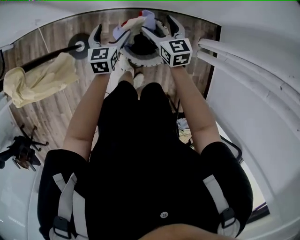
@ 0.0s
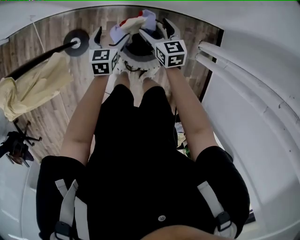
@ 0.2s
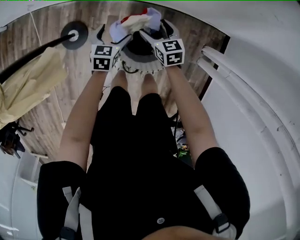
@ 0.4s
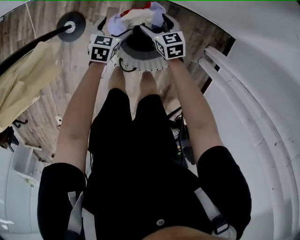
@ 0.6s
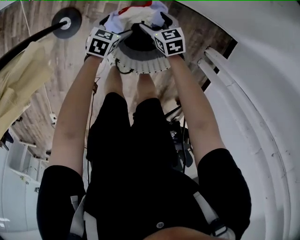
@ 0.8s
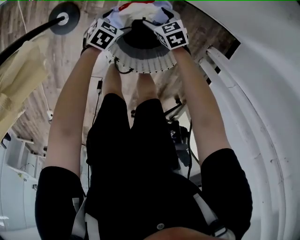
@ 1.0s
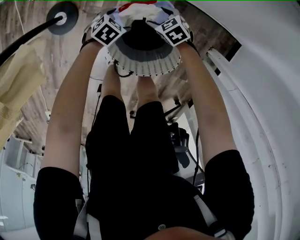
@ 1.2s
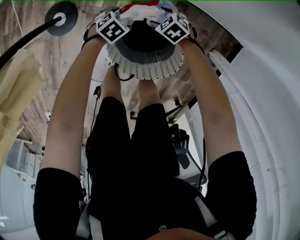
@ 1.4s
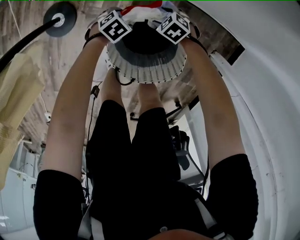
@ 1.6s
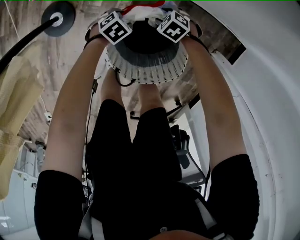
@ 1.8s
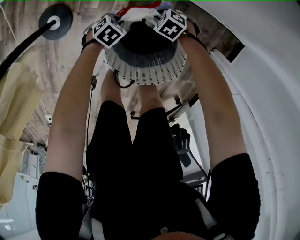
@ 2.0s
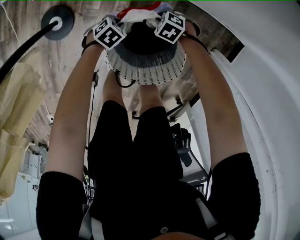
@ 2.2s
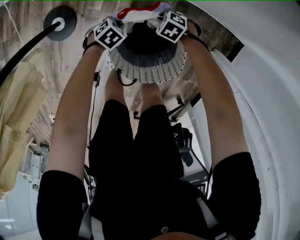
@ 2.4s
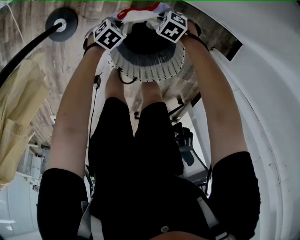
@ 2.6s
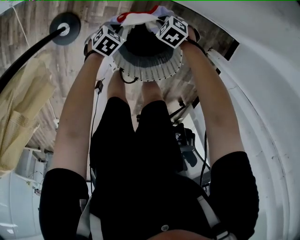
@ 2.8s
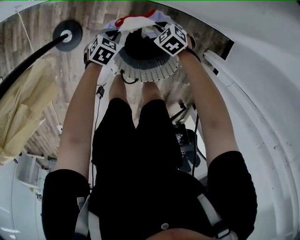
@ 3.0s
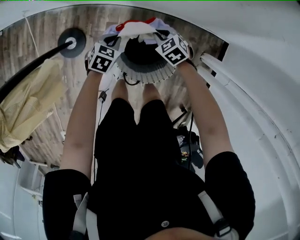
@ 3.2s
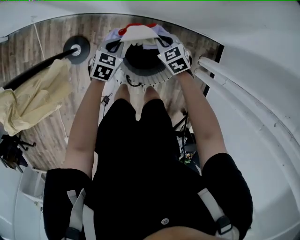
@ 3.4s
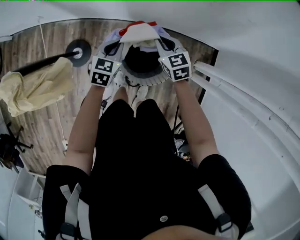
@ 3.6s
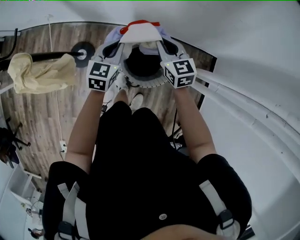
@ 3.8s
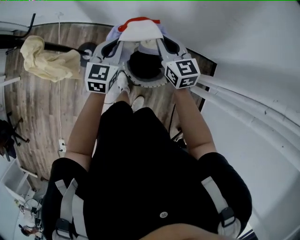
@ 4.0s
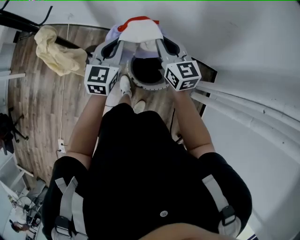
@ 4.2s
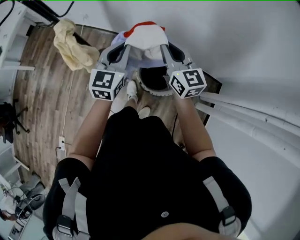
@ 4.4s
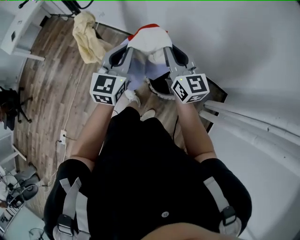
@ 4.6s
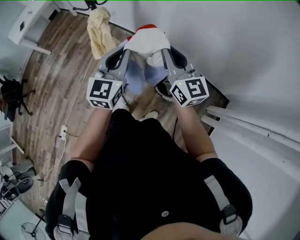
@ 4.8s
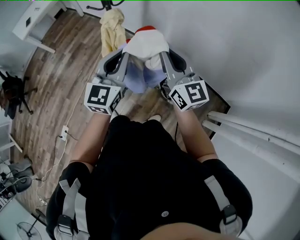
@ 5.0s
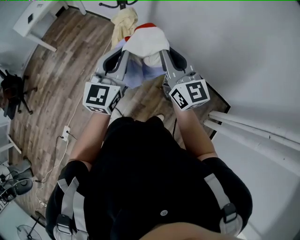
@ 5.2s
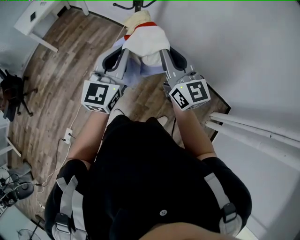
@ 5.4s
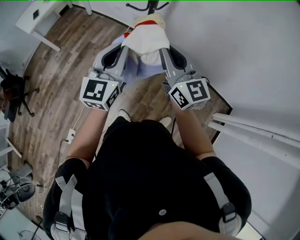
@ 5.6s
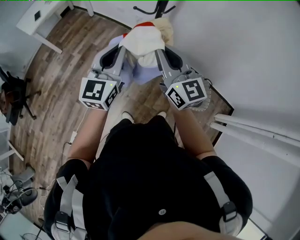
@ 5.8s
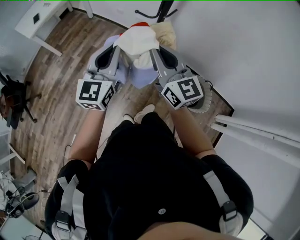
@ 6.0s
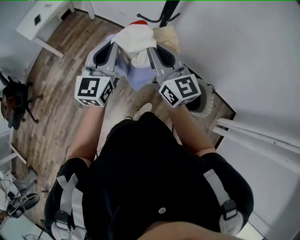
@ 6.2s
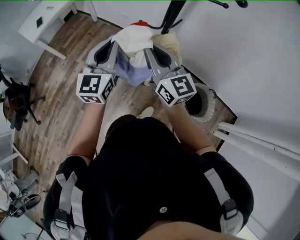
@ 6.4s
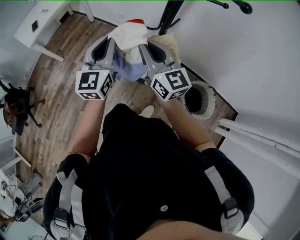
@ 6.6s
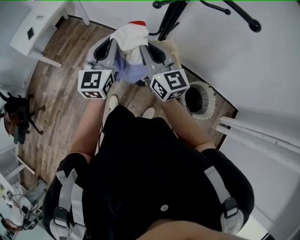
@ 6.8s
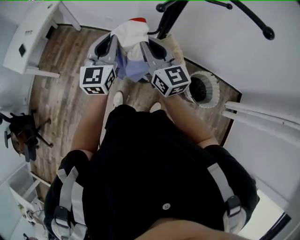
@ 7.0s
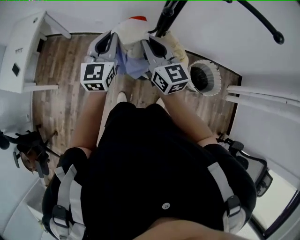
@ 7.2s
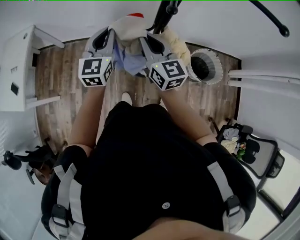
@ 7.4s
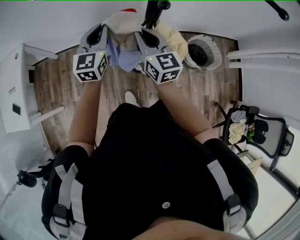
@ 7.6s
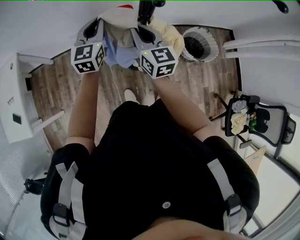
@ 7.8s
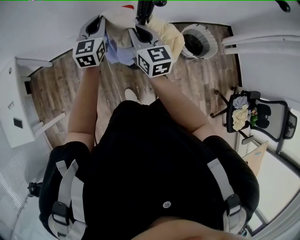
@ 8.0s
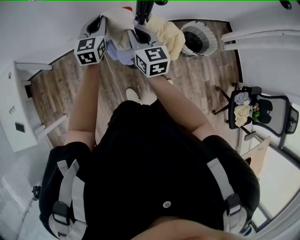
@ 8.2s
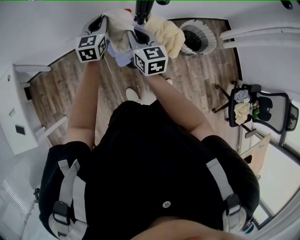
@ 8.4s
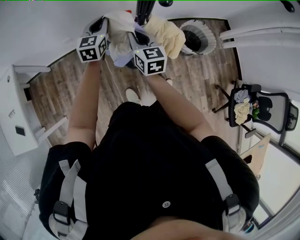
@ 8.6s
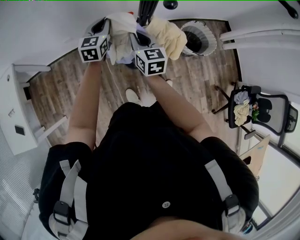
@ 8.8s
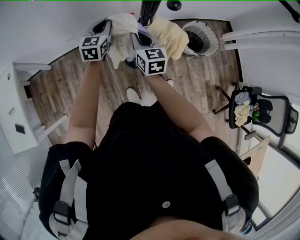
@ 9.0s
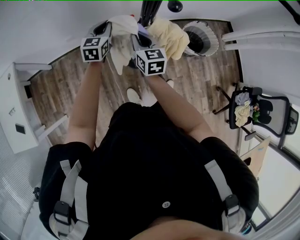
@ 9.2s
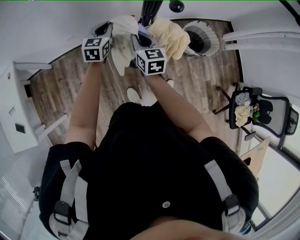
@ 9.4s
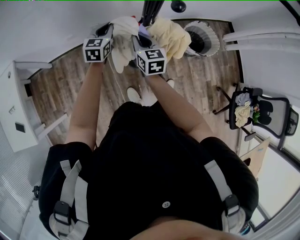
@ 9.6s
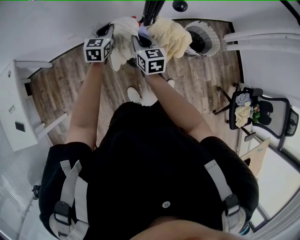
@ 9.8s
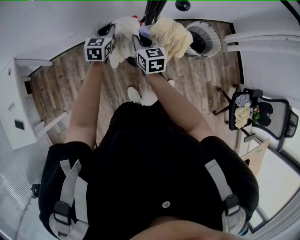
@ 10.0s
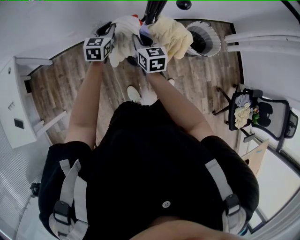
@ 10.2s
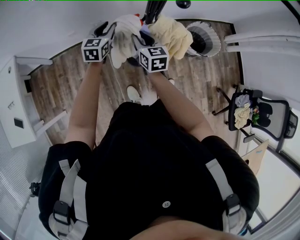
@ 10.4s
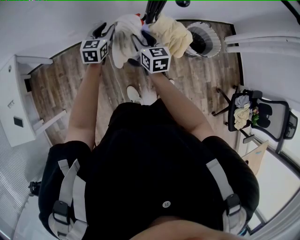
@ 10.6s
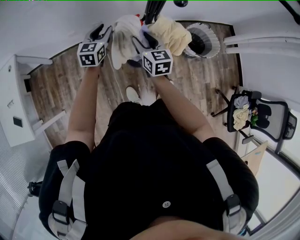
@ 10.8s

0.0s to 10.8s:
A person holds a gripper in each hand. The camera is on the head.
0.0s to 1.6s: Both grippers move downward, approximately 50 cm. The left gripper angles its fingers downward, by approximately 30 degrees; the right gripper tips its fingers downward by some 40 degrees.
1.6s to 3.0s: The two grippers go about 15 cm upward. The right gripper closes, while the left gripper closes up.
3.0s to 4.6s: The grippers both shift upward by some 60 cm. The left gripper tips its fingers upward by about 50 degrees, while the right gripper tips its fingers upward by approximately 60 degrees.
4.6s to 6.2s: The two grippers travel together, to the left, roughly 50 cm.
6.2s to 7.8s: The left gripper shifts by some 35 cm, and turns by roughly 40 degrees. Meanwhile the right gripper changes place by about 25 cm, and swivels roughly 50 degrees.
7.8s to 9.2s: The left gripper heads downward and forward, covering roughly 15 cm. The right gripper goes roughly 10 cm downward.
9.2s to 10.8s: The grippers move only a little.

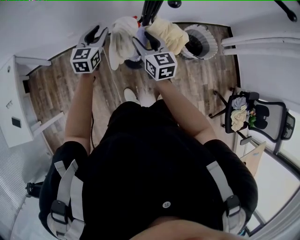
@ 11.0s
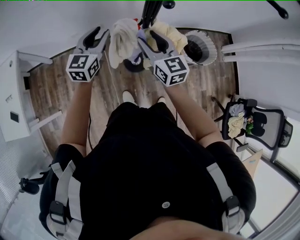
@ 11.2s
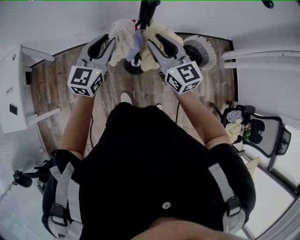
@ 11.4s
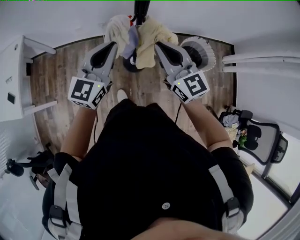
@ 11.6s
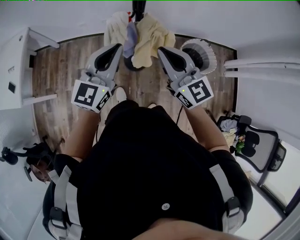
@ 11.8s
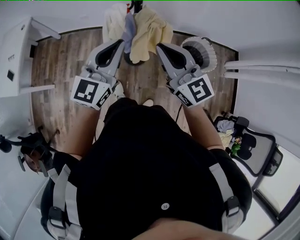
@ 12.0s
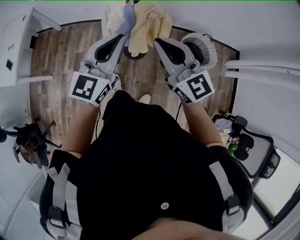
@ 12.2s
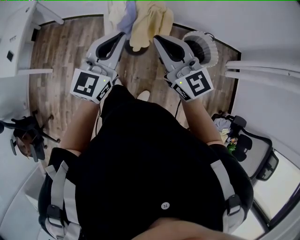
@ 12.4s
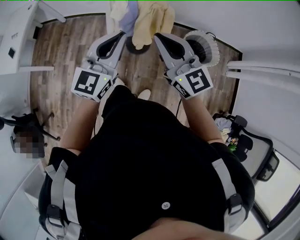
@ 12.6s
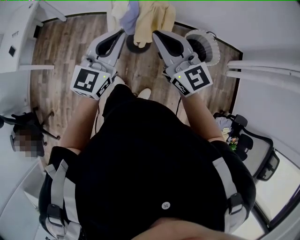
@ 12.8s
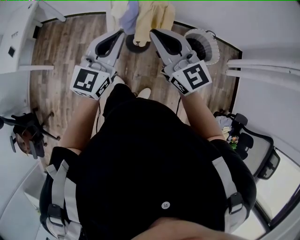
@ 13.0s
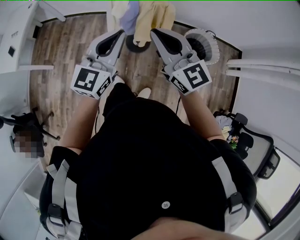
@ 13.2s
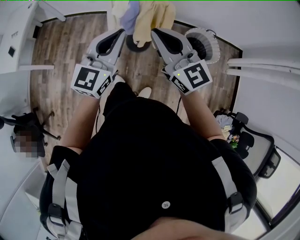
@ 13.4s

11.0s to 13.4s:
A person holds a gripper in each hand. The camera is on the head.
11.0s to 12.2s: The two grippers go some 35 cm backward, upward and to the right. The right gripper changes its angle by roughly 40 degrees, and closes up.
12.2s to 13.4s: The left gripper travels backward by some 5 cm.

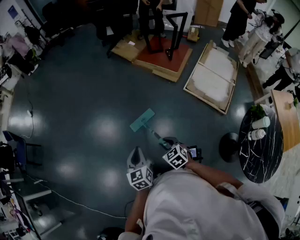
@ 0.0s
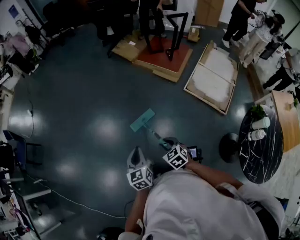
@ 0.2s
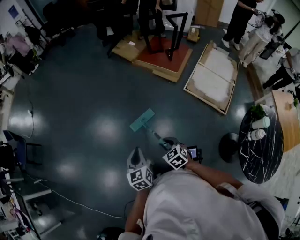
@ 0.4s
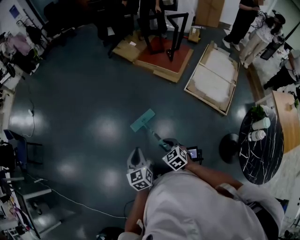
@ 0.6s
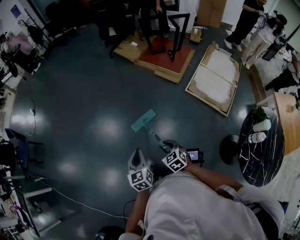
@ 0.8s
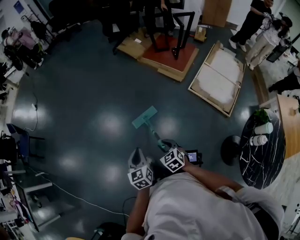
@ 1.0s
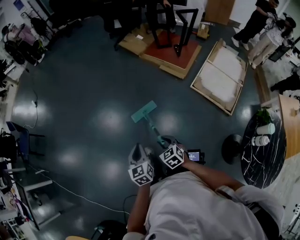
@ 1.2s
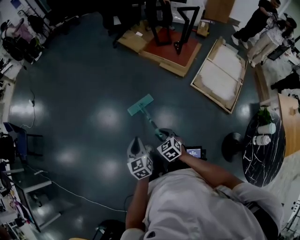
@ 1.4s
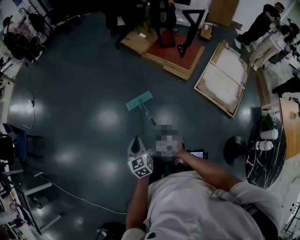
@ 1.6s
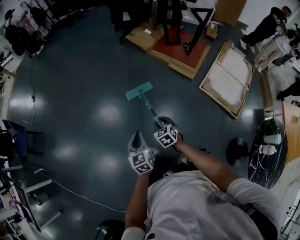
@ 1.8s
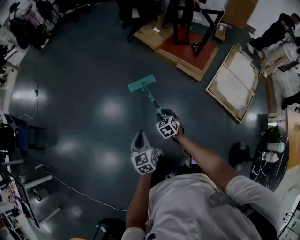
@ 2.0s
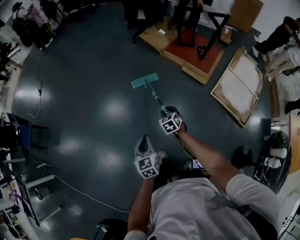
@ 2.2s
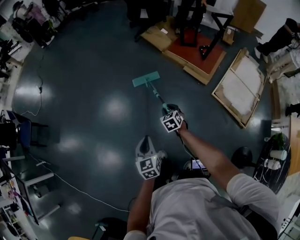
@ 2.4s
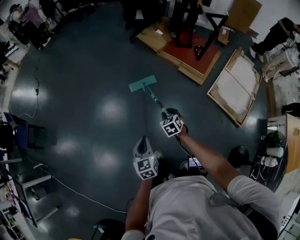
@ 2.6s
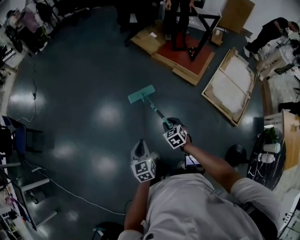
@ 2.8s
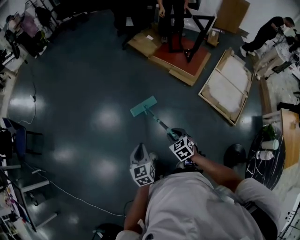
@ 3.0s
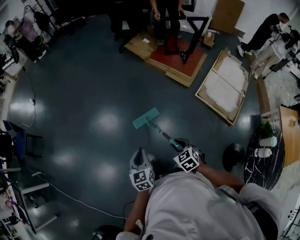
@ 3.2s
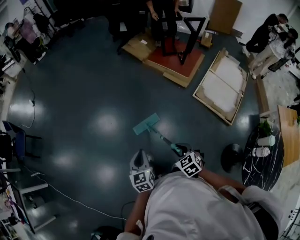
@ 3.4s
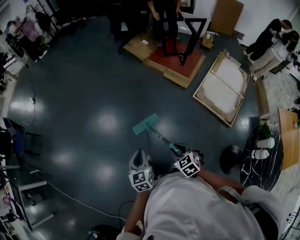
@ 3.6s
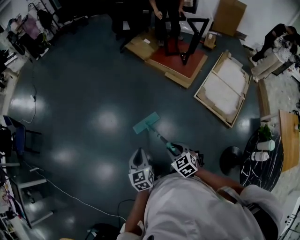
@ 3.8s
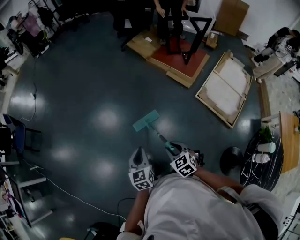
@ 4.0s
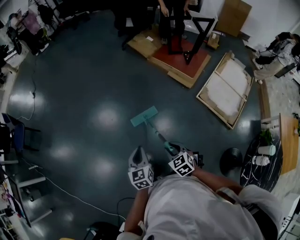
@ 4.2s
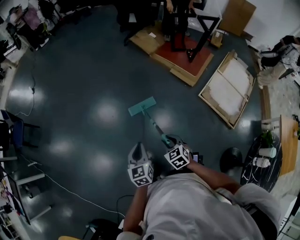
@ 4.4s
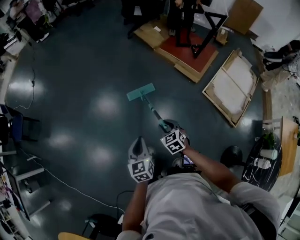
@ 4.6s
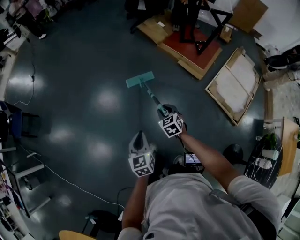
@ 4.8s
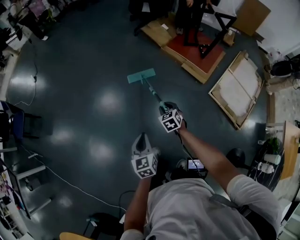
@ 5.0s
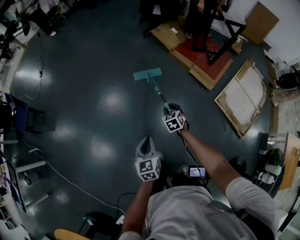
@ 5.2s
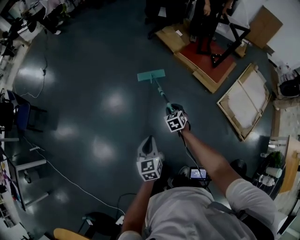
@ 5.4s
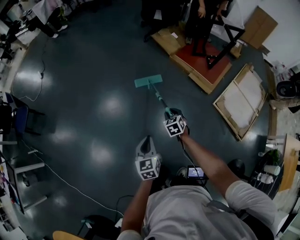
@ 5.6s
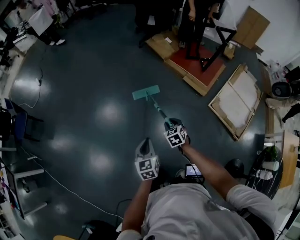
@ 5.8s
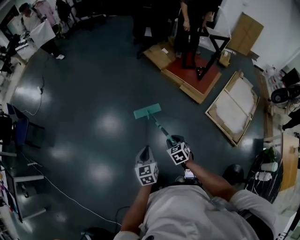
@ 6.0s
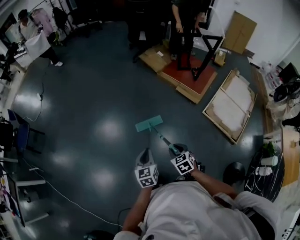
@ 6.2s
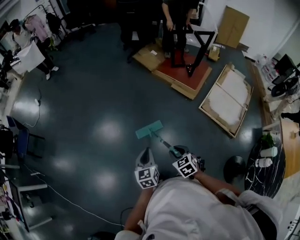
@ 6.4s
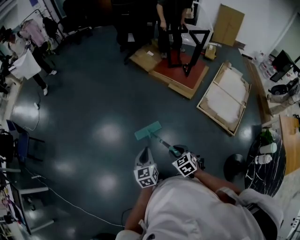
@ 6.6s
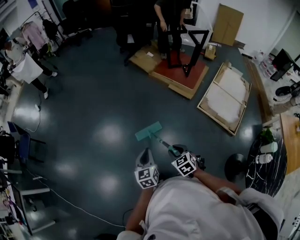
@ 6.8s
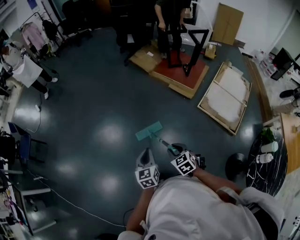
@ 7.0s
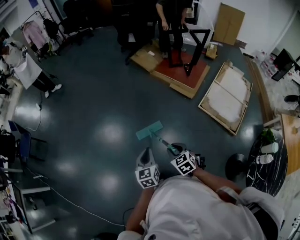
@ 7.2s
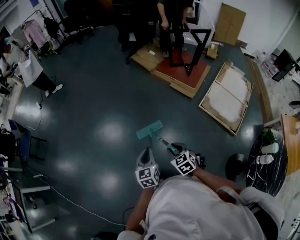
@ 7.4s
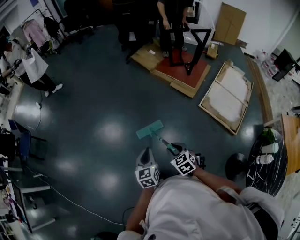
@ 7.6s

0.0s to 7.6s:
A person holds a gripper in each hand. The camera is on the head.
0.0s to 1.6s: Both grippers move forward, some 15 cm.
1.6s to 3.0s: The right gripper goes forward and returns, approximately 25 cm each way; the left gripper reaches approximately 10 cm forward, then returns.
3.0s to 4.6s: The right gripper moves forward, some 5 cm; the left gripper travels backward and back again, some 5 cm each way.
4.6s to 6.0s: The right gripper goes forward and returns, some 15 cm each way.
6.0s to 7.6s: The left gripper goes some 10 cm backward and to the right. Meanwhile the right gripper shifts about 15 cm backward and upward.

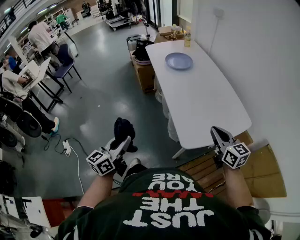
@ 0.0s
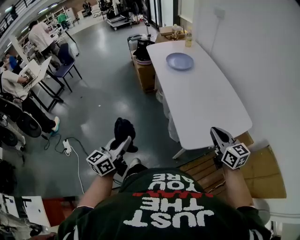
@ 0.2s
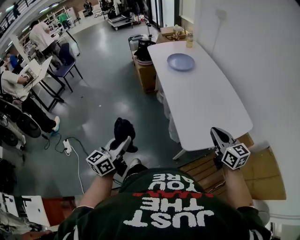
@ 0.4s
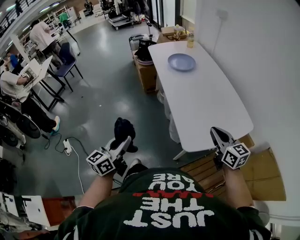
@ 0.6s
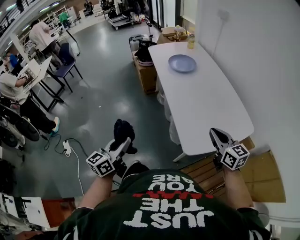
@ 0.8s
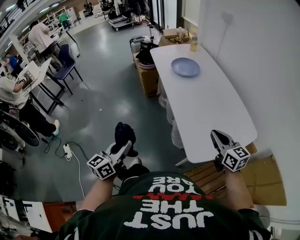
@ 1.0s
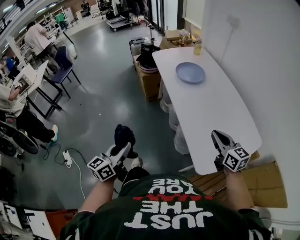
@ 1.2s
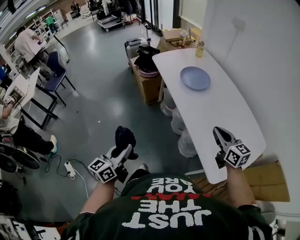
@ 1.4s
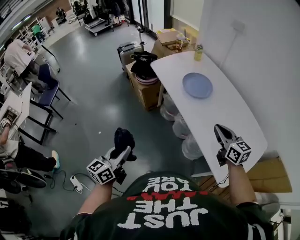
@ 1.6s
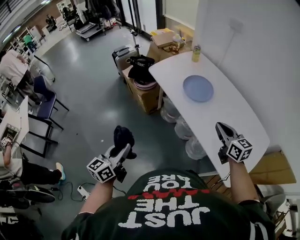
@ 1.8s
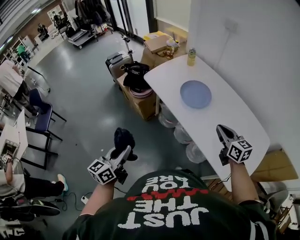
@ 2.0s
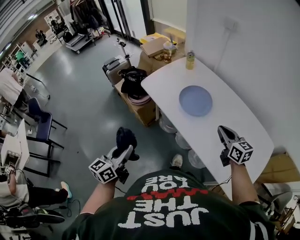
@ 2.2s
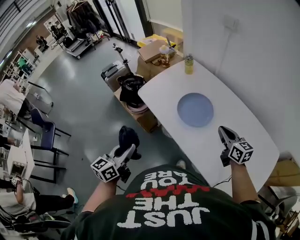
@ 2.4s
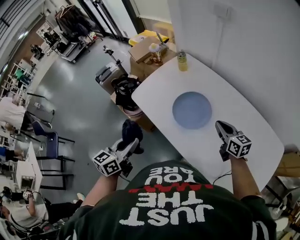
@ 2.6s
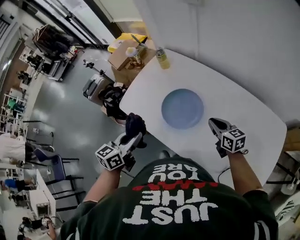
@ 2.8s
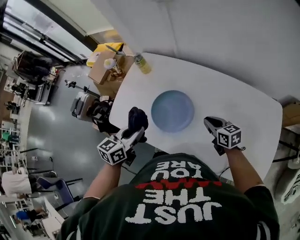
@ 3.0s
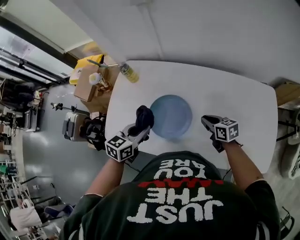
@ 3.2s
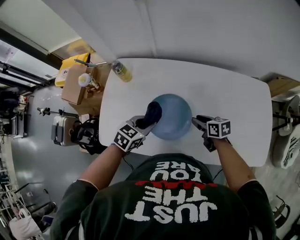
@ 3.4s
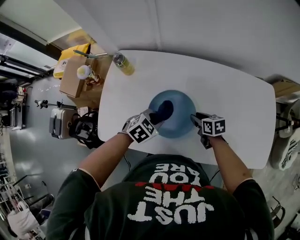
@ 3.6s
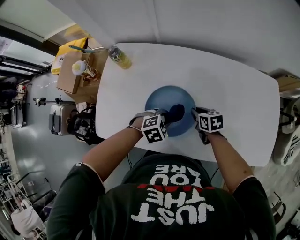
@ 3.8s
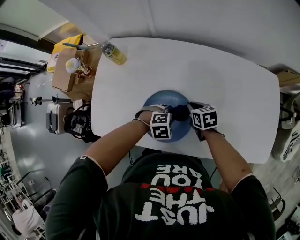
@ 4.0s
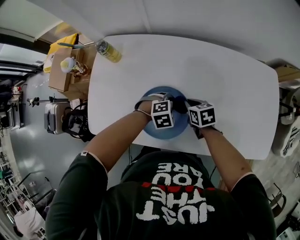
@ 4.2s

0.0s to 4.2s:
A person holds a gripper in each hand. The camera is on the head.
0.0s to 1.4s: The grippers both shift forward and to the left by roughly 25 cm.
1.4s to 2.8s: The left gripper changes place by roughly 50 cm, and rotates about 40 degrees. Meanwhile the right gripper changes place by some 35 cm, and turns by roughly 30 degrees.
2.8s to 4.2s: The left gripper is displaced downward by roughly 25 cm, and angles its fingers downward, by roughly 50 degrees, while the right gripper goes about 15 cm downward, swivels approximately 40 degrees, and opens, then closes once more.
